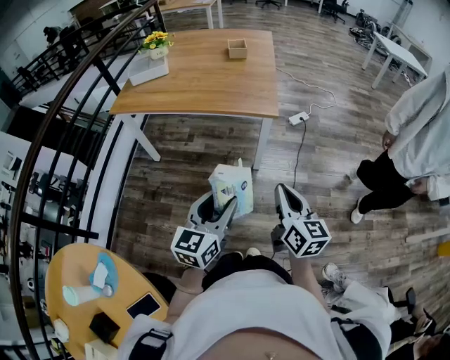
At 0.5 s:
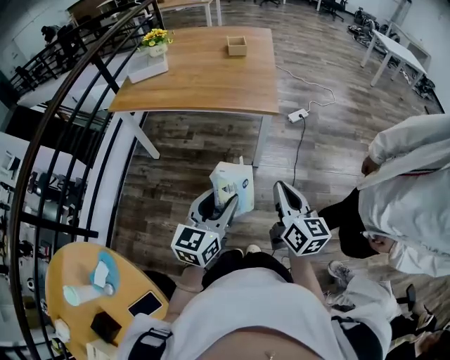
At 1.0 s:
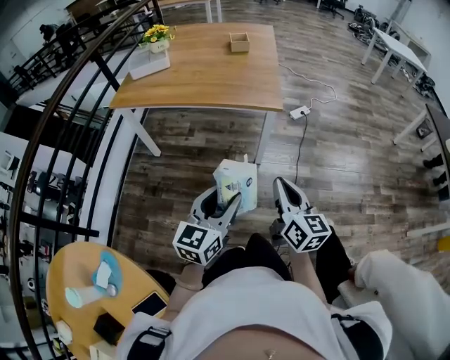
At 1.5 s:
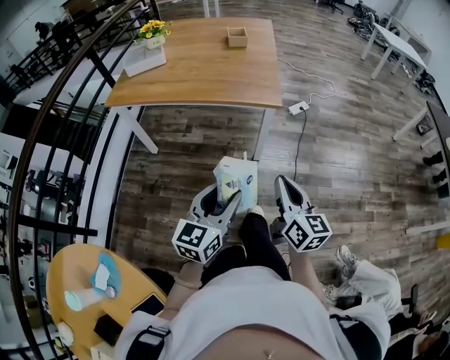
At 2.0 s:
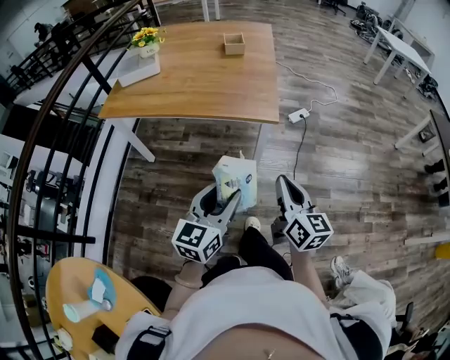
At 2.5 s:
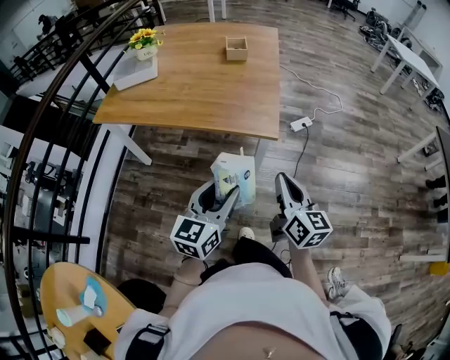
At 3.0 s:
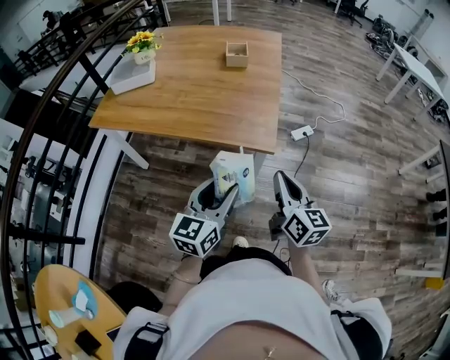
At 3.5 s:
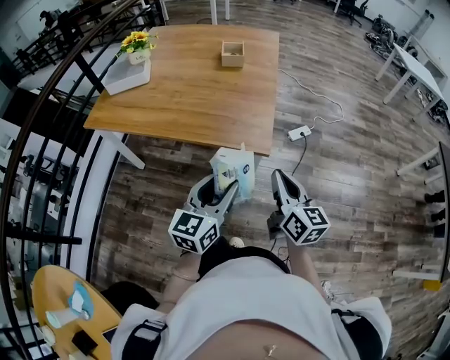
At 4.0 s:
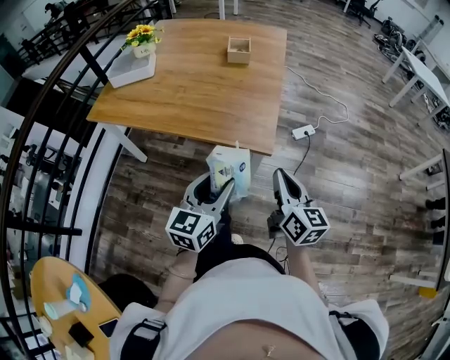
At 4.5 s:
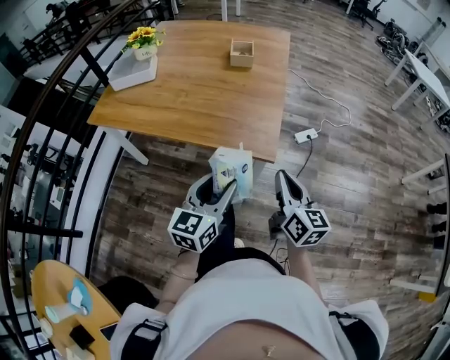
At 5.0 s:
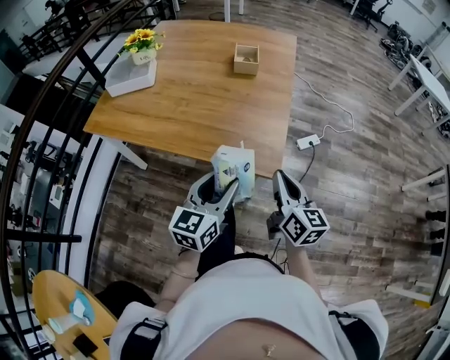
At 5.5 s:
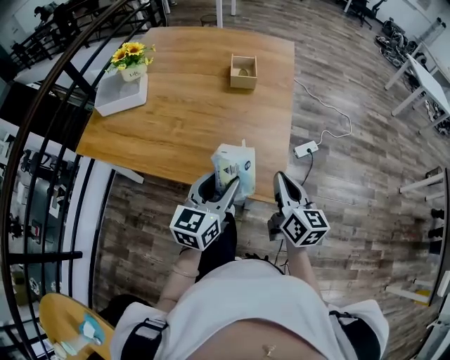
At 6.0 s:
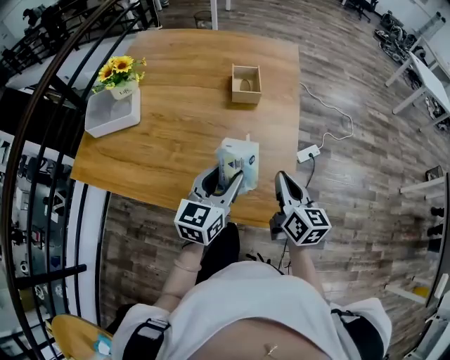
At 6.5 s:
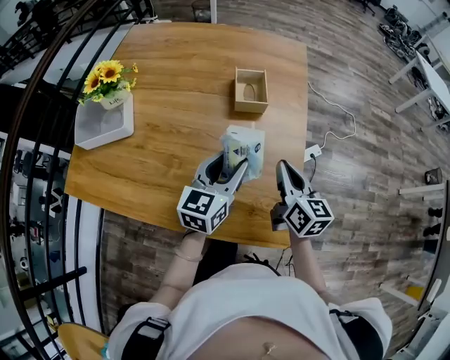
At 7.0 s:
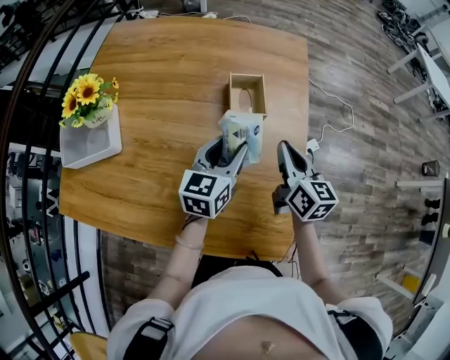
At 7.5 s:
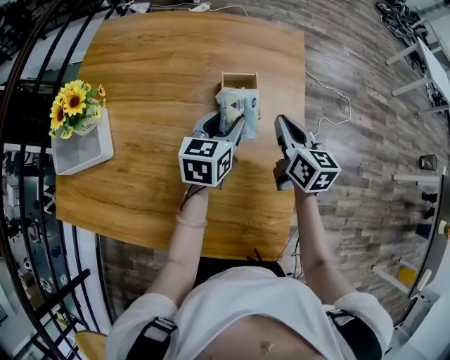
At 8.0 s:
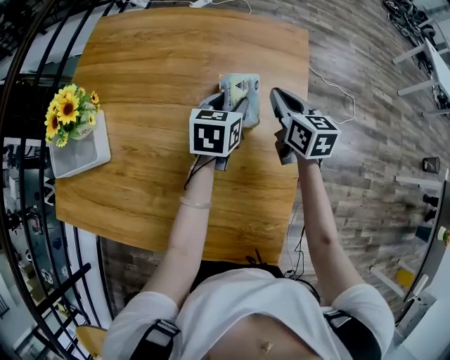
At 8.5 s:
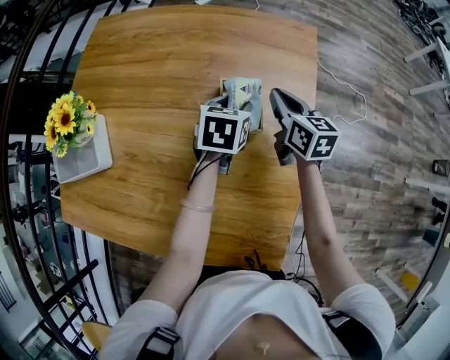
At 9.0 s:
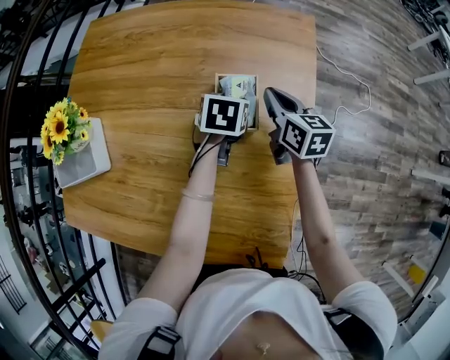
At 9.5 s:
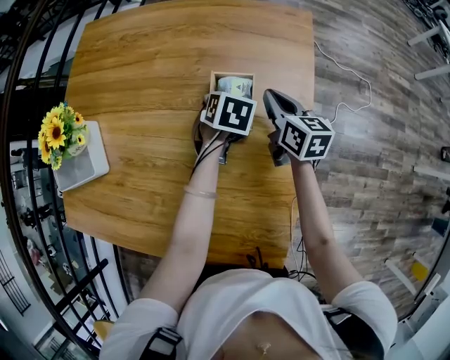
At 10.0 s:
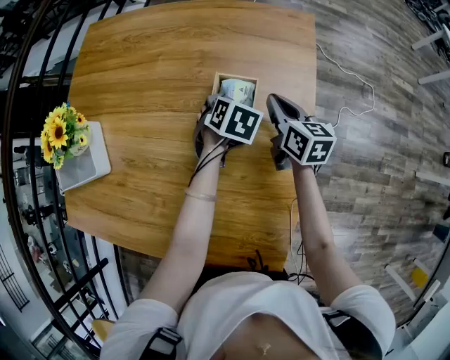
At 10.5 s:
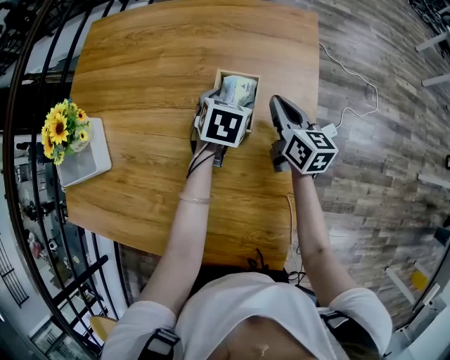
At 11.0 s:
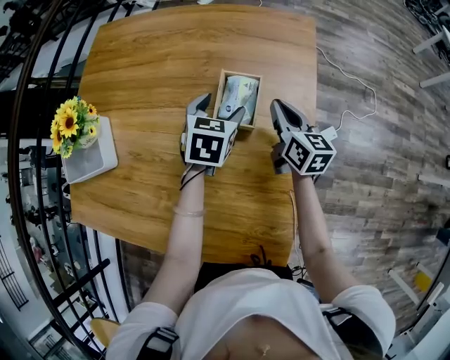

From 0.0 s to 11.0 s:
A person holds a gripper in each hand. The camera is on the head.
From 0.0 s to 2.0 s: Both grippers travel together forward, approximately 10 cm.
From 2.0 s to 3.5 s: Both grippers move forward, some 20 cm.
From 3.5 s to 5.5 s: The two grippers go approximately 20 cm forward.
From 5.5 s to 7.5 s: The pair of grippers is taken forward, roughly 40 cm.
From 7.5 s to 9.0 s: Both grippers move forward and downward, some 15 cm. The left gripper tilts its fingers roughly 30 degrees downward.
From 9.0 s to 11.0 s: The left gripper changes place by about 5 cm, and opens.

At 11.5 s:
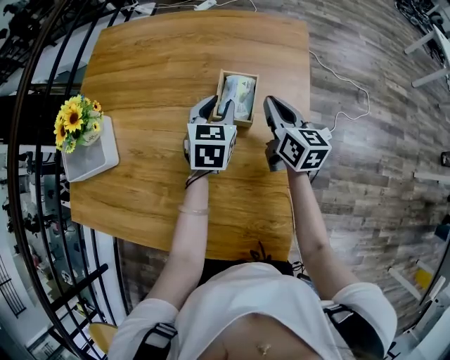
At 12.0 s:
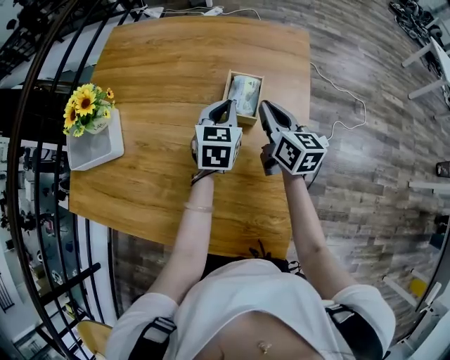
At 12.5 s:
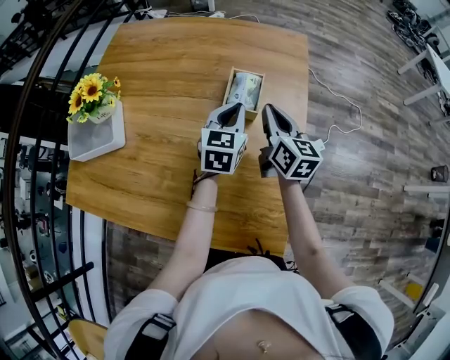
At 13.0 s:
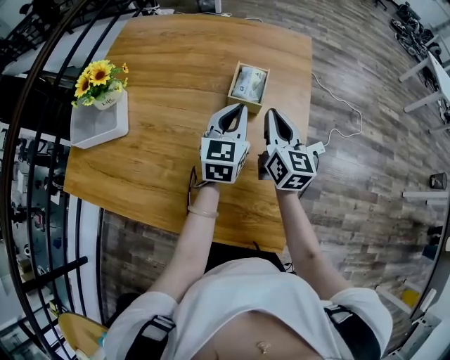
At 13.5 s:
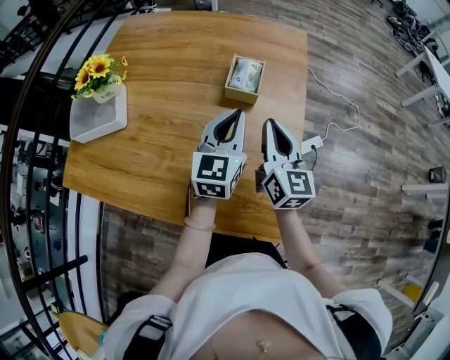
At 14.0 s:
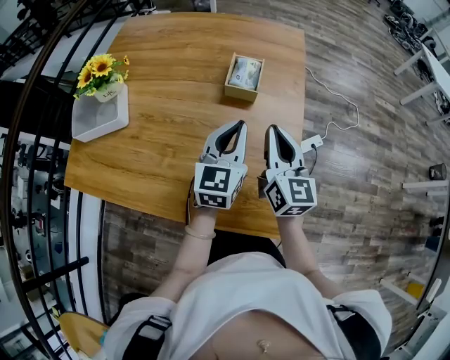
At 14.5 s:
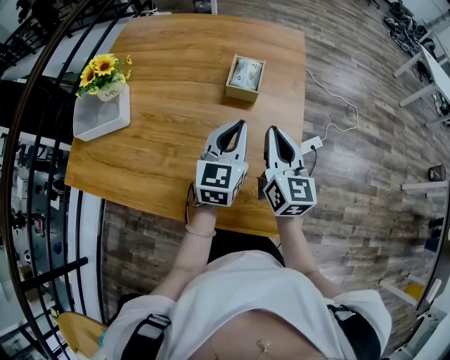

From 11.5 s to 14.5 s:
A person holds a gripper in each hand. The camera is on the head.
From 11.5 s to 13.0 s: The left gripper shifts roughly 10 cm backward and upward, rotates approximately 20 degrees, and closes, while the right gripper travels backward by roughly 10 cm.
From 13.0 s to 14.5 s: The two grippers go approximately 10 cm backward.

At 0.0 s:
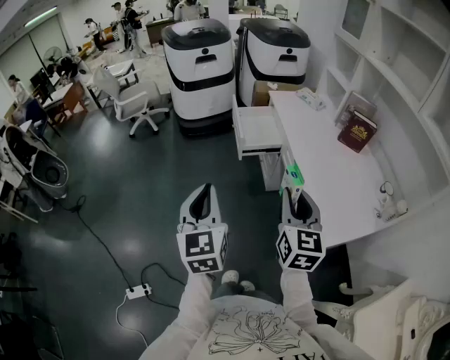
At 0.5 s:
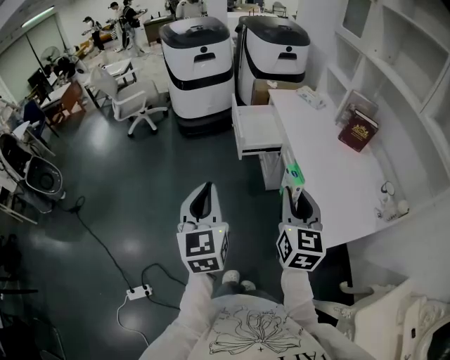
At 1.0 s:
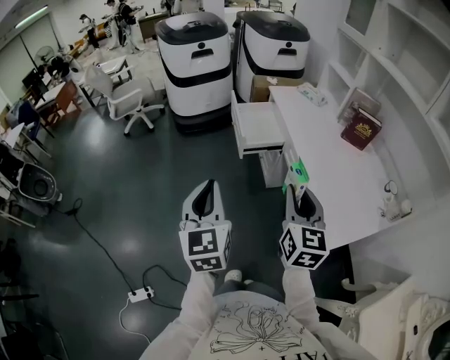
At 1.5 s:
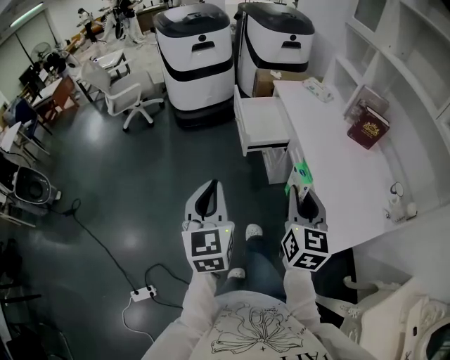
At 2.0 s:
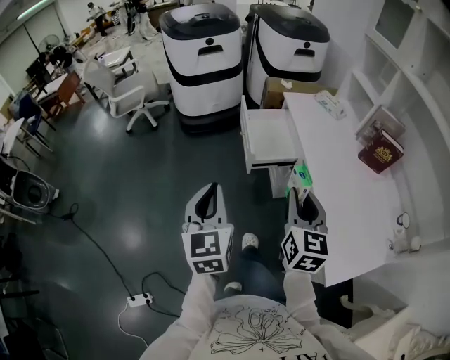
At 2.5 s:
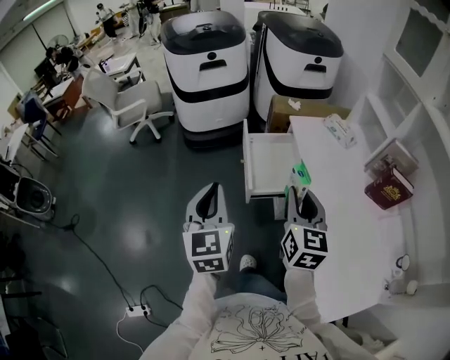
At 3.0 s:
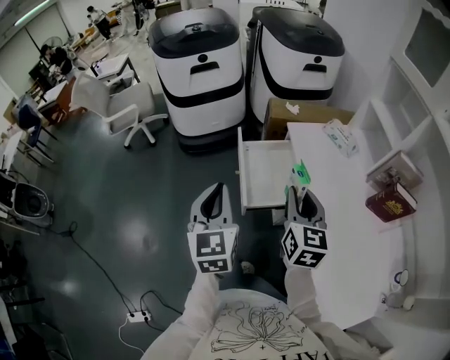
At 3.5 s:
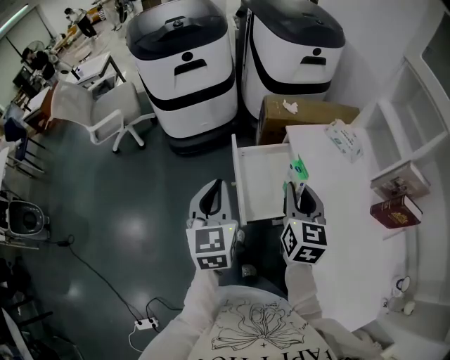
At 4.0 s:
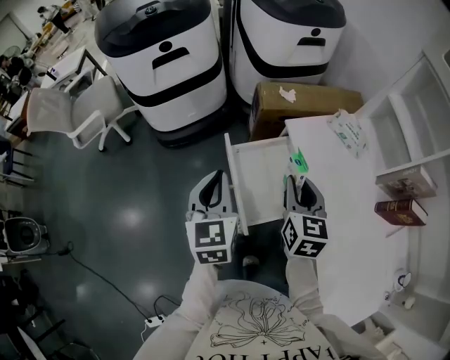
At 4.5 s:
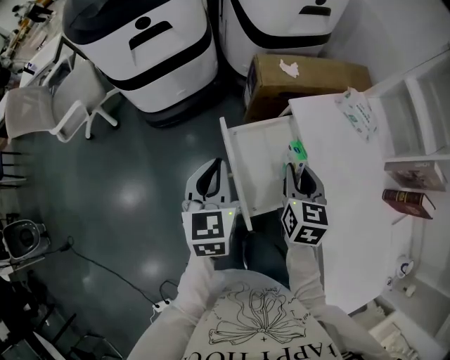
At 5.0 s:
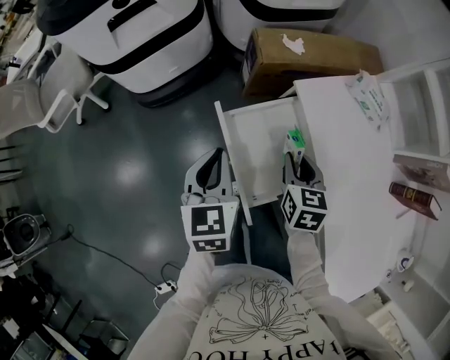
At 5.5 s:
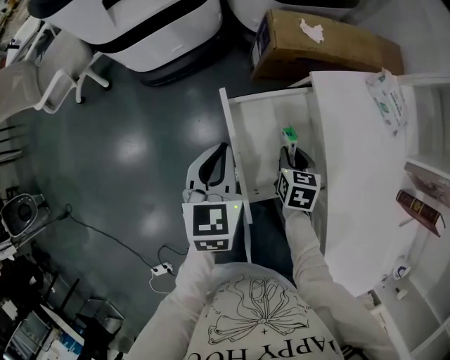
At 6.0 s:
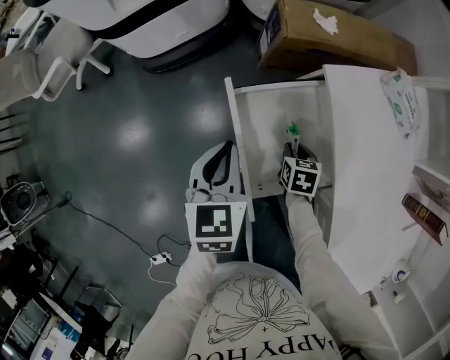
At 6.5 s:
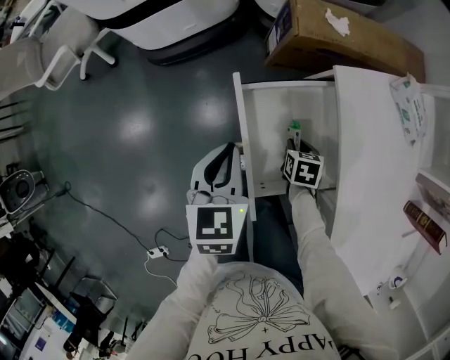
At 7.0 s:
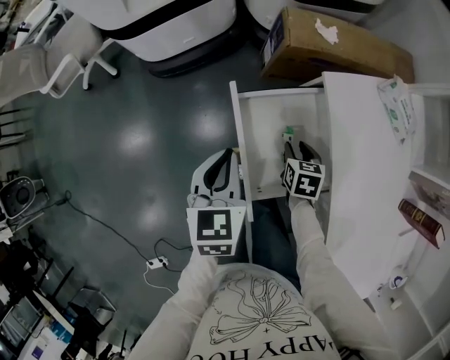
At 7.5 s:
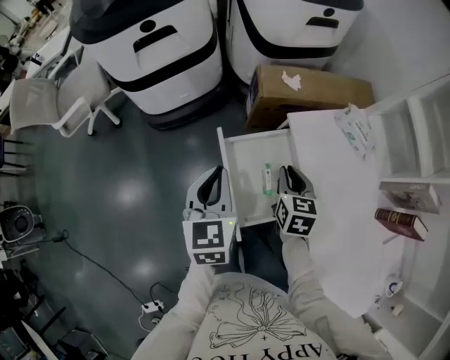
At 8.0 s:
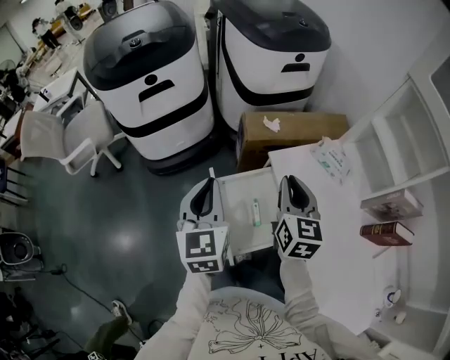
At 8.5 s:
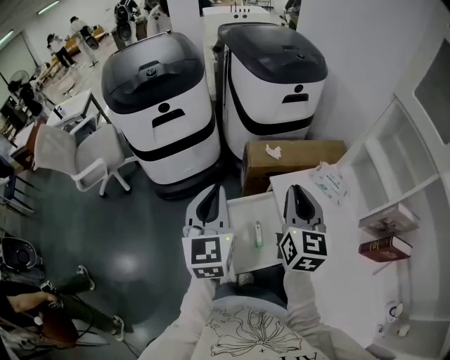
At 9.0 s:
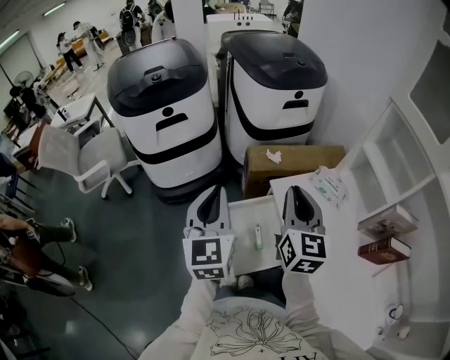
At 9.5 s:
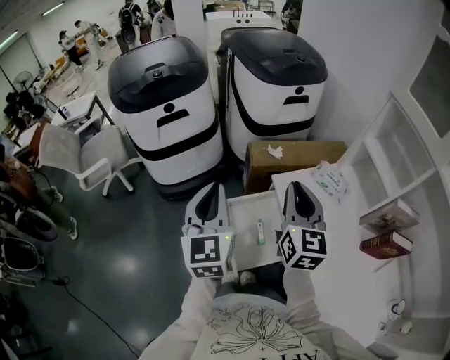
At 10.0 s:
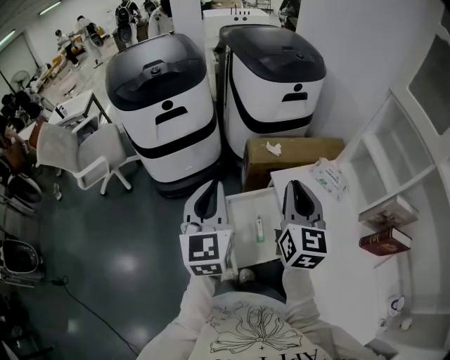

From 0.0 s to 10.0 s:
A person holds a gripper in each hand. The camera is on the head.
From 0.0 s to 2.0 s: The two grippers go some 20 cm forward.
From 2.0 s to 4.0 s: The two grippers travel together, forward, roughly 50 cm.
From 4.0 s to 6.0 s: The right gripper heads downward, covering about 35 cm, and points its fingers about 40 degrees further downward. The left gripper shifts about 15 cm downward.
From 6.0 s to 8.0 s: The right gripper goes approximately 40 cm upward, and angles its fingers upward, by roughly 50 degrees, while the left gripper moves upward, roughly 20 cm, and turns by roughly 20 degrees.
From 8.0 s to 10.0 s: Both grippers travel together upward, about 10 cm.

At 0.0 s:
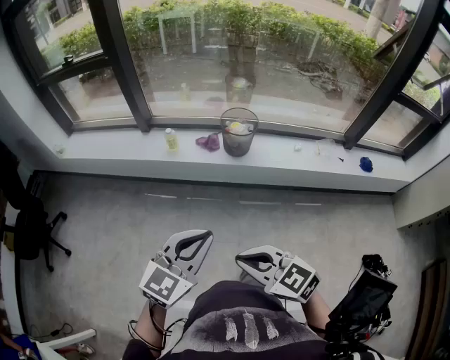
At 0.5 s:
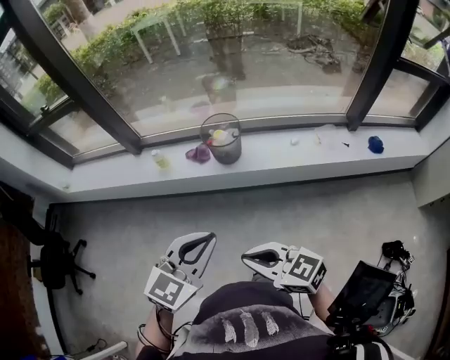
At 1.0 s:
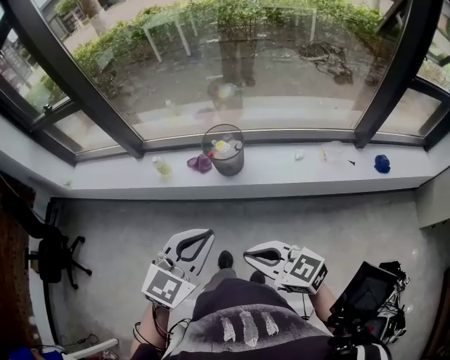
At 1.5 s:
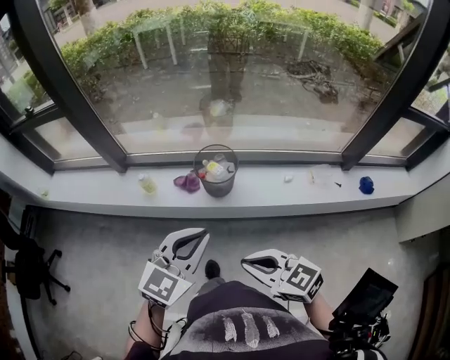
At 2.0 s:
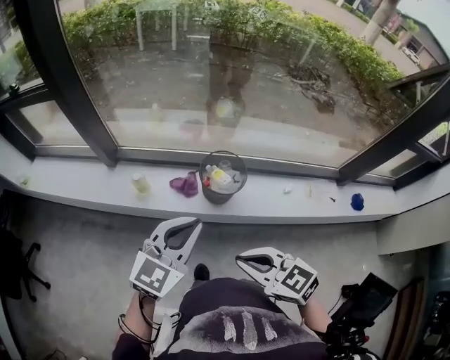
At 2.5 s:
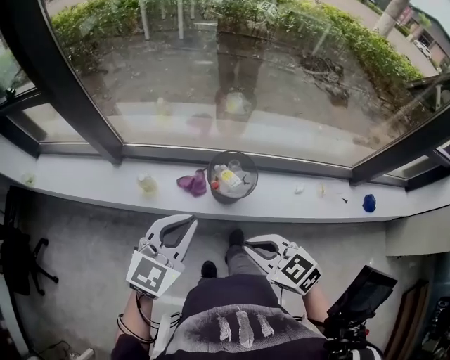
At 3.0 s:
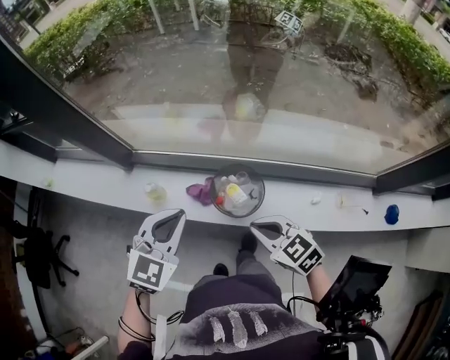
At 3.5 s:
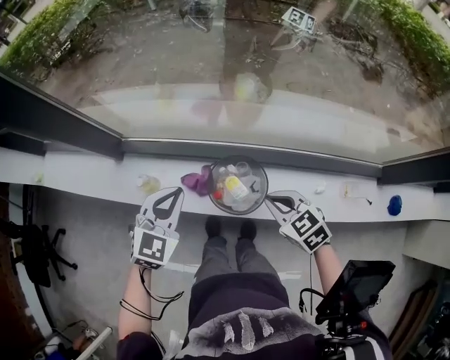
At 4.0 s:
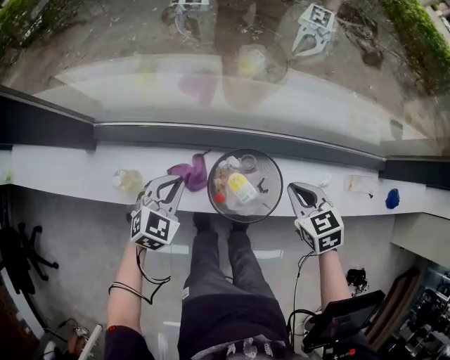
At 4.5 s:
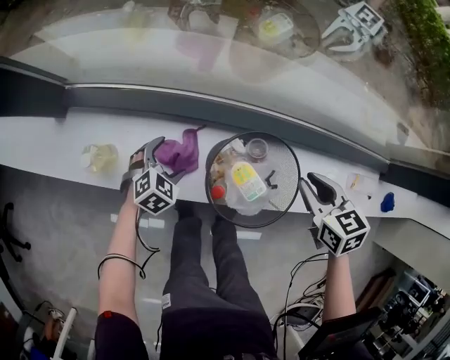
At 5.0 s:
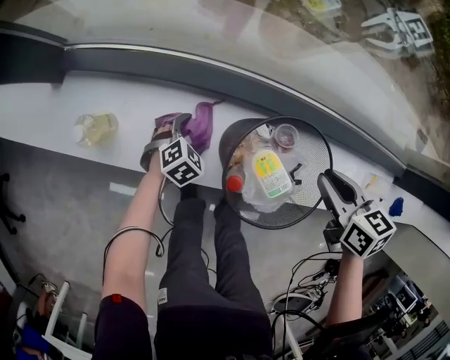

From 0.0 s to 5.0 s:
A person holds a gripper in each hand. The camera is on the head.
From 0.0 s to 2.5 s: The pair of grippers is taken forward, roughly 40 cm.
From 2.5 s to 5.0 s: The left gripper heads downward, covering about 60 cm, tilts its fingers approximately 50 degrees downward, and opens. The right gripper goes about 40 cm downward, forward and to the right, and rotates some 40 degrees.
